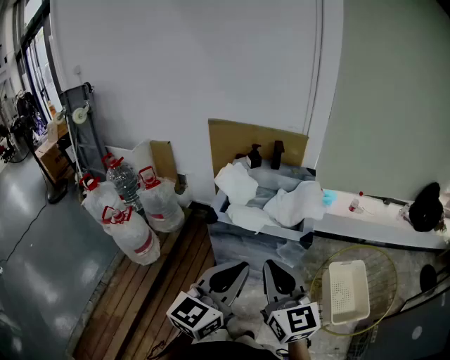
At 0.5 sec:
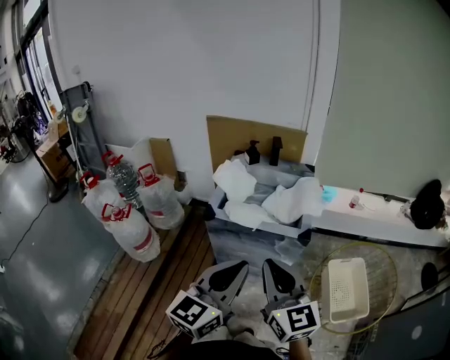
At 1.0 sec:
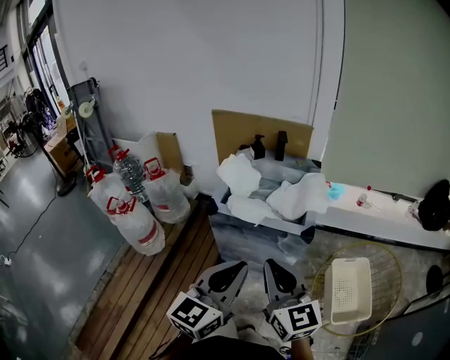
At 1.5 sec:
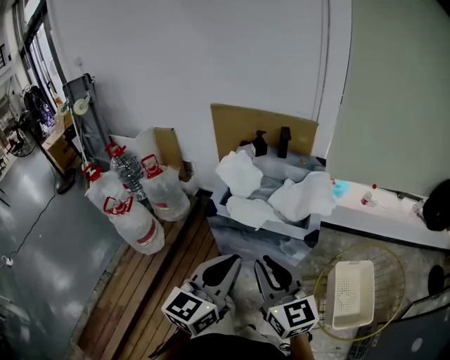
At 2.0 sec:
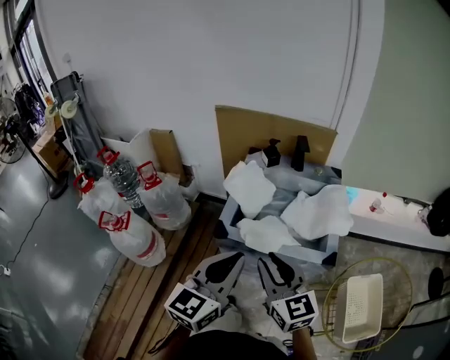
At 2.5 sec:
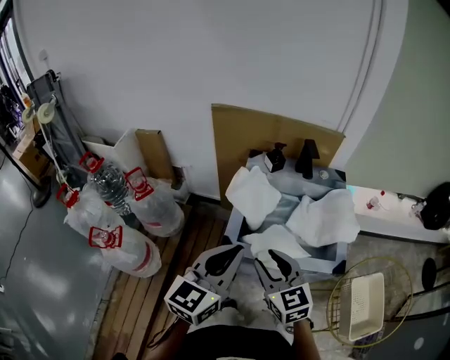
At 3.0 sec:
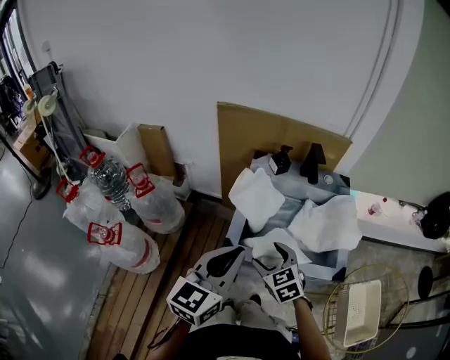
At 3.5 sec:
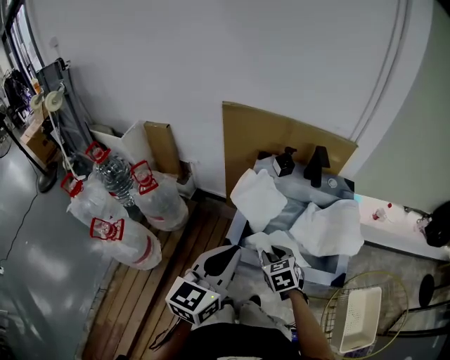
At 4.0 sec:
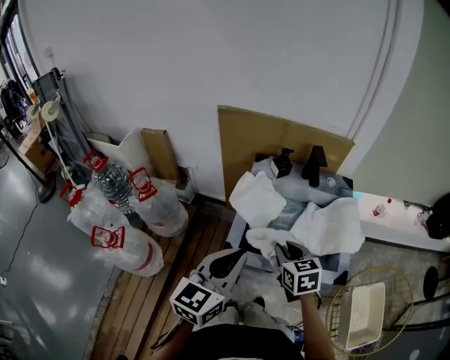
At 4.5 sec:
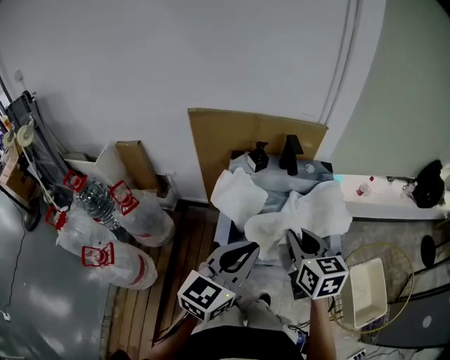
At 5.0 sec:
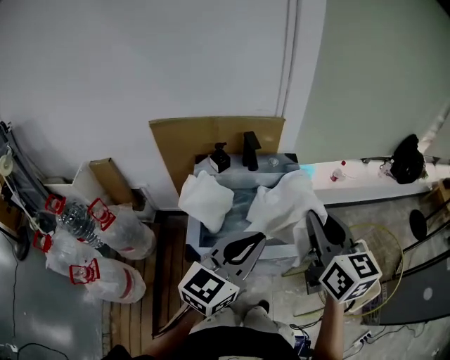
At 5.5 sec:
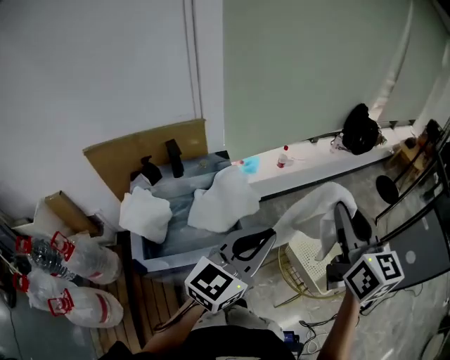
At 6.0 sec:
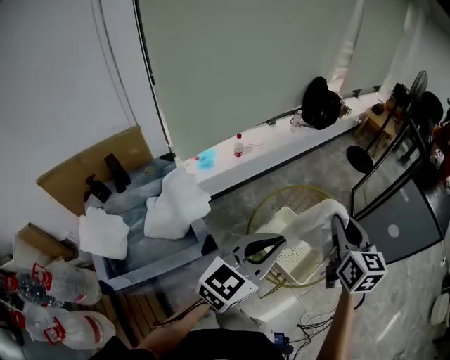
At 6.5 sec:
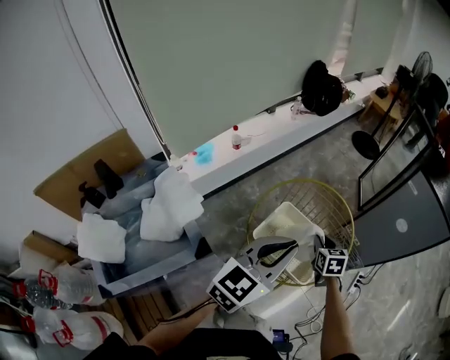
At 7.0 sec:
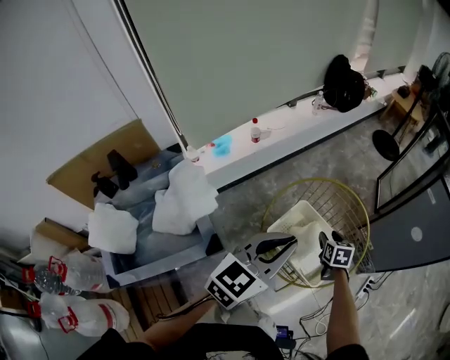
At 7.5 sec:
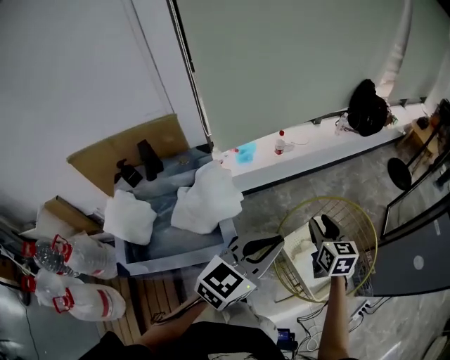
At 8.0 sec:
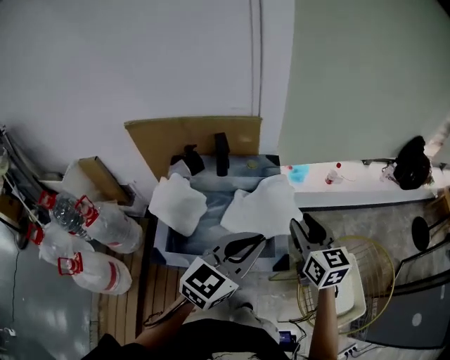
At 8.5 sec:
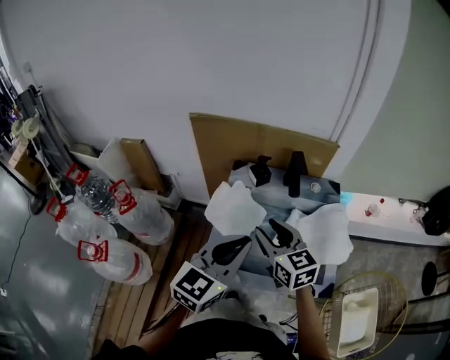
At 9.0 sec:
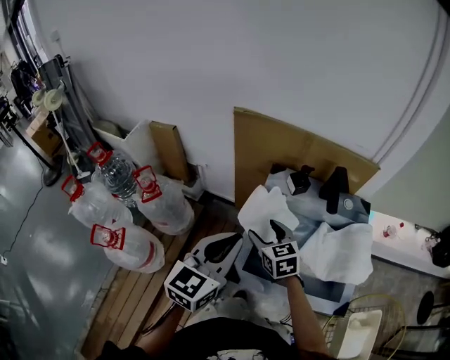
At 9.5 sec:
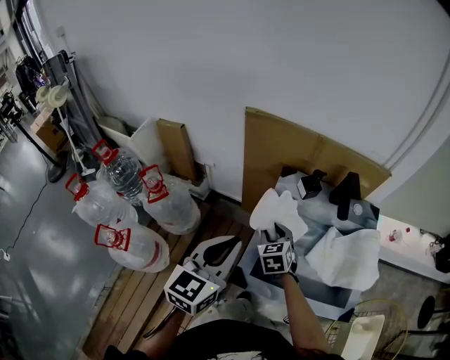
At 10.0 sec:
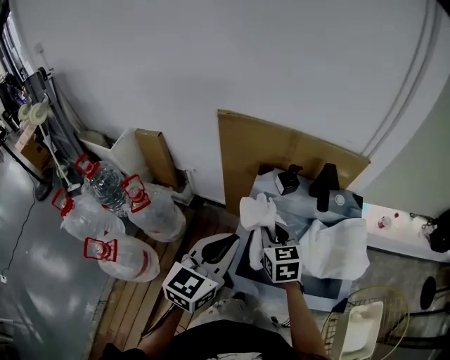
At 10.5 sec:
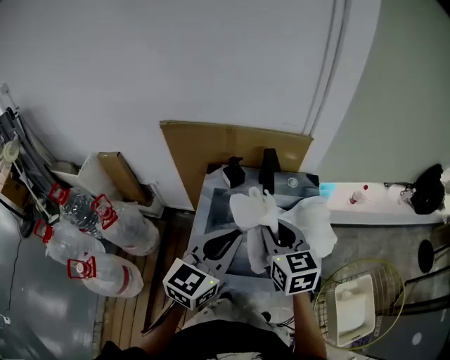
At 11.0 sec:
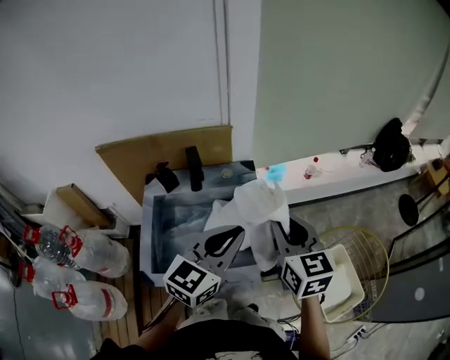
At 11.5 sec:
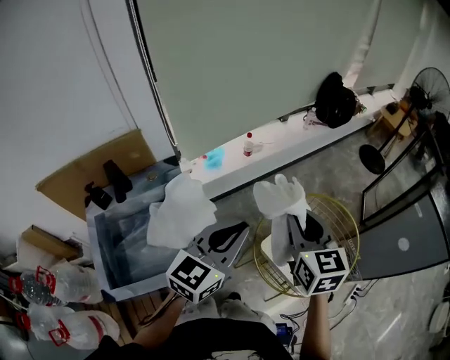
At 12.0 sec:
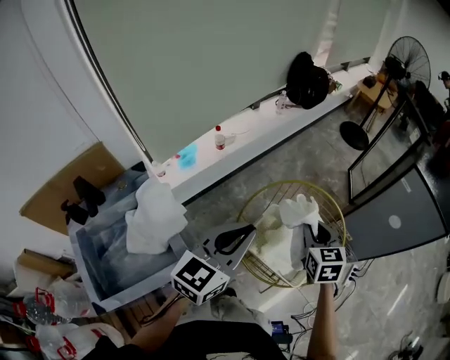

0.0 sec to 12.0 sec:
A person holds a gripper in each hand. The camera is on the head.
0.0 sec to 2.0 sec: The left gripper goes approximately 15 cm forward, while the right gripper goes some 20 cm forward and downward.
2.0 sec to 4.0 sec: The right gripper heads forward and downward, covering about 20 cm, swivels some 30 degrees, and opens, then closes again, while the left gripper heads forward and to the left, covering about 15 cm.
4.0 sec to 6.0 sec: The pair of grippers is taken approximately 60 cm. The right gripper swivels approximately 70 degrees; the left gripper turns by about 60 degrees.
6.0 sec to 8.0 sec: The right gripper goes downward and returns, some 35 cm each way, and changes its angle by some 40 degrees. The left gripper moves some 30 cm, and rotates some 40 degrees.
8.0 sec to 10.0 sec: The left gripper changes place by some 35 cm, and rotates about 30 degrees. Meanwhile the right gripper changes place by about 40 cm, turns by about 30 degrees, and opens, then closes again.
10.0 sec to 12.0 sec: The pair of grippers is taken roughly 70 cm. The left gripper swivels about 60 degrees; the right gripper turns by approximately 60 degrees.

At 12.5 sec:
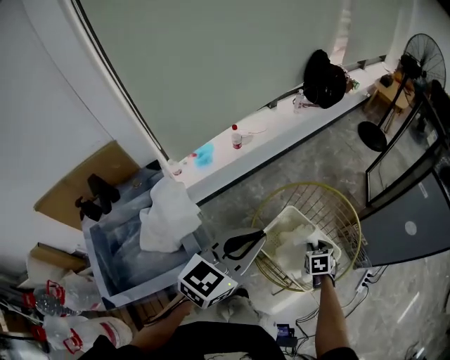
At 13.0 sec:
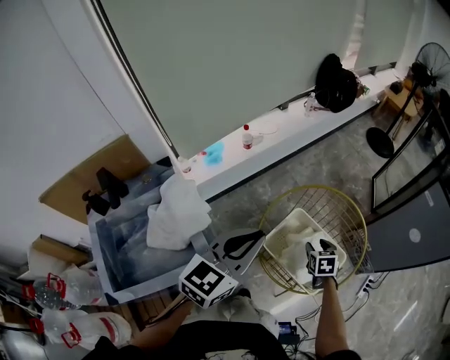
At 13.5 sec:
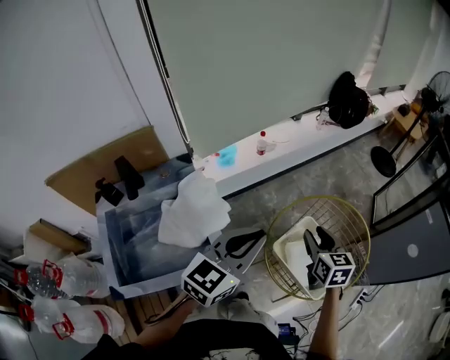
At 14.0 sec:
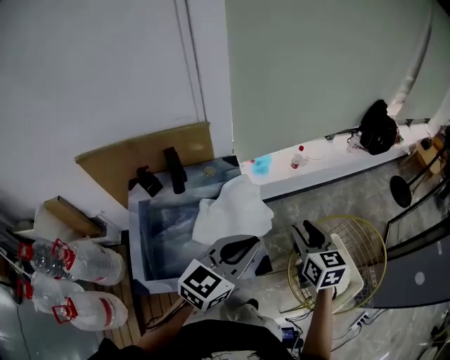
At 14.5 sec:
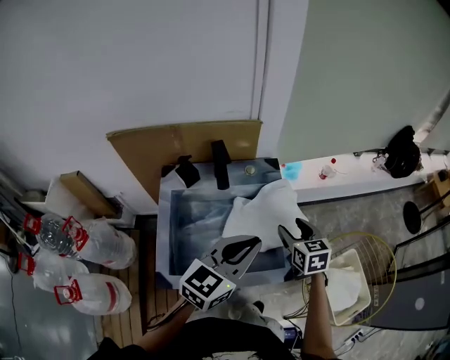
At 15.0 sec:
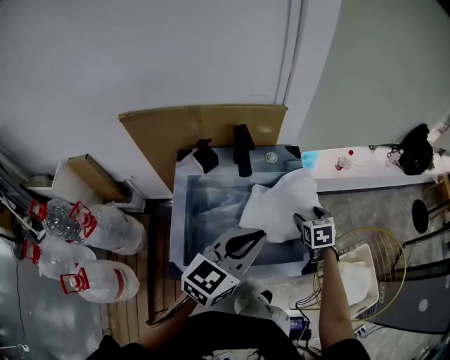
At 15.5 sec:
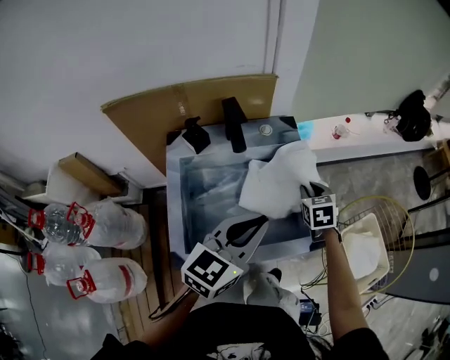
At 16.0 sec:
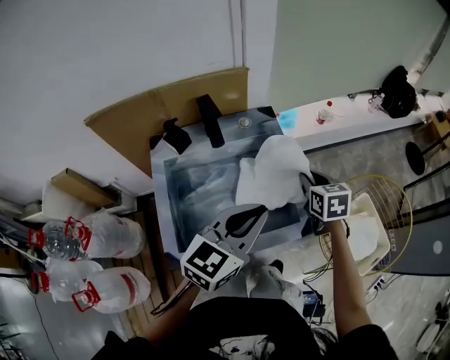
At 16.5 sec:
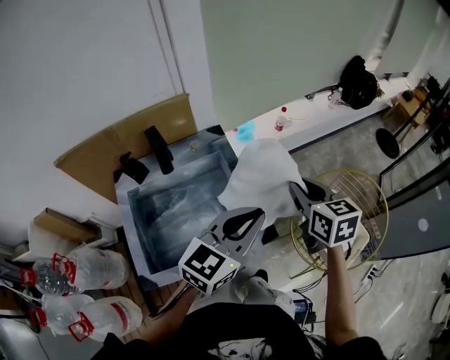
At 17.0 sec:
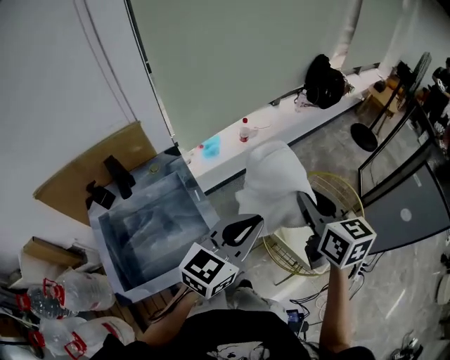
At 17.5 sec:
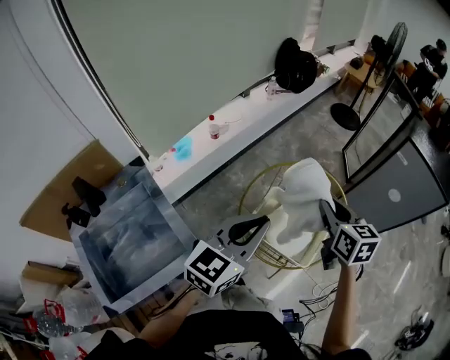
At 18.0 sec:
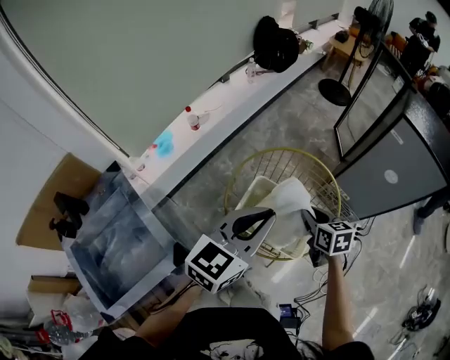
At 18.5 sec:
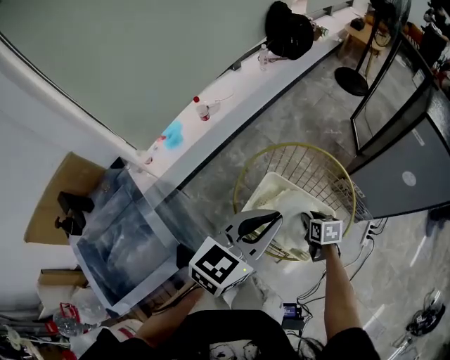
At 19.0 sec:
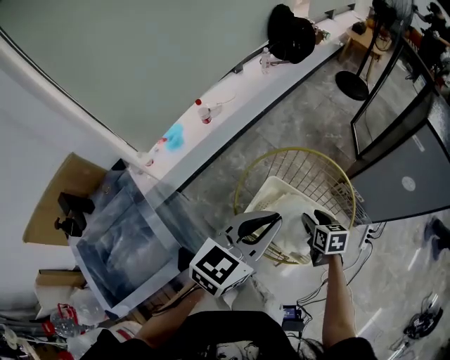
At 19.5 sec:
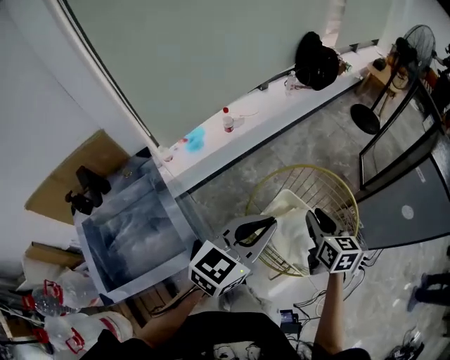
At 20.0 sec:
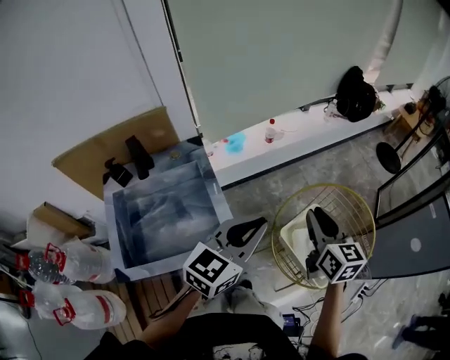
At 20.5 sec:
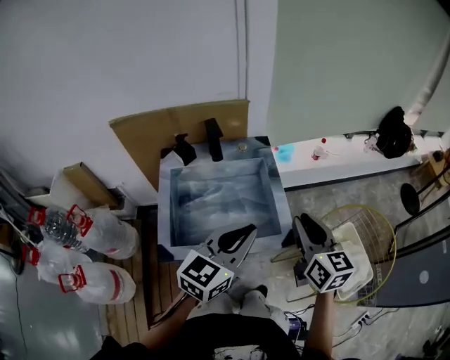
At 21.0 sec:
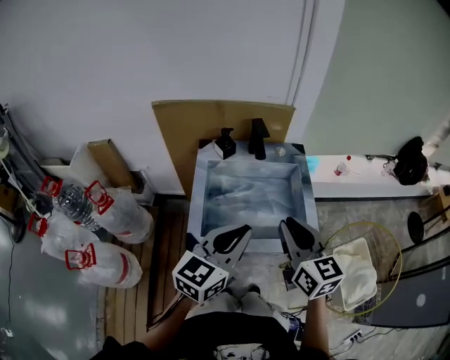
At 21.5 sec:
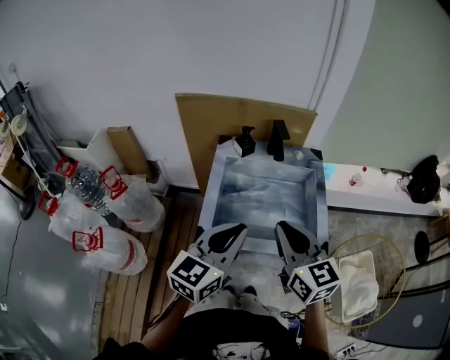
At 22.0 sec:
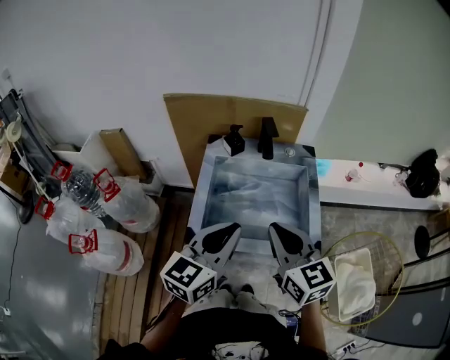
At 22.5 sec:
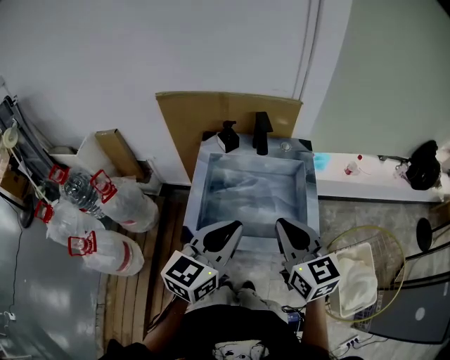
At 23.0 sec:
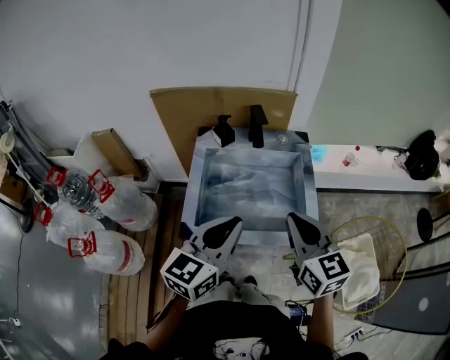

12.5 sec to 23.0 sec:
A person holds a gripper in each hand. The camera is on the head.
12.5 sec to 14.5 sec: The right gripper changes place by approximately 50 cm, turns by roughly 50 degrees, and opens its fingers, while the left gripper moves roughly 35 cm, and swivels about 30 degrees.
14.5 sec to 16.5 sec: The right gripper travels to the right and upward by about 15 cm, and closes its fingers. The left gripper goes approximately 10 cm to the right.
16.5 sec to 19.0 sec: The left gripper moves to the right and forward, about 35 cm, and changes its angle by approximately 30 degrees; the right gripper shifts some 50 cm to the right and downward, swivels some 40 degrees, and opens its fingers.
19.0 sec to 21.0 sec: Both grippers are carried about 60 cm. The left gripper rotates approximately 50 degrees, while the right gripper points its fingers approximately 40 degrees further upward, and closes.
21.0 sec to 23.0 sec: The grippers make only small movements.

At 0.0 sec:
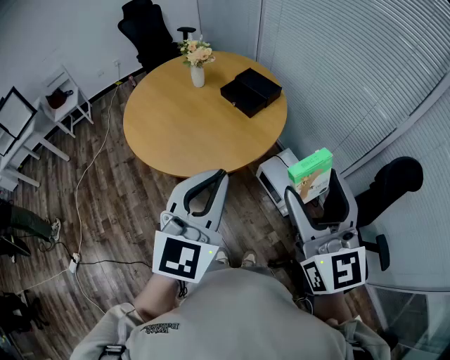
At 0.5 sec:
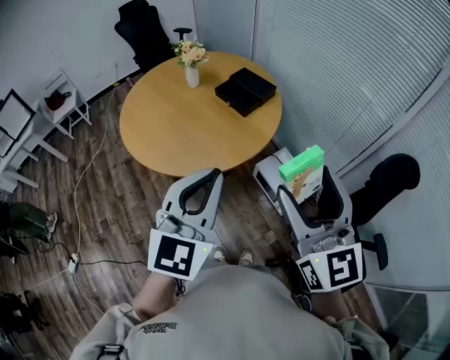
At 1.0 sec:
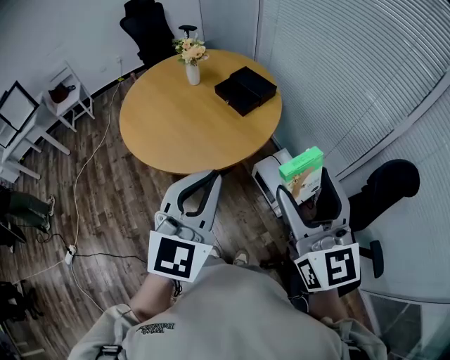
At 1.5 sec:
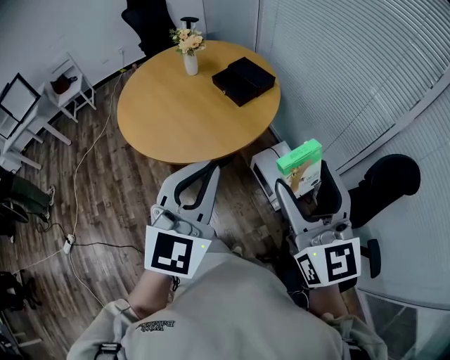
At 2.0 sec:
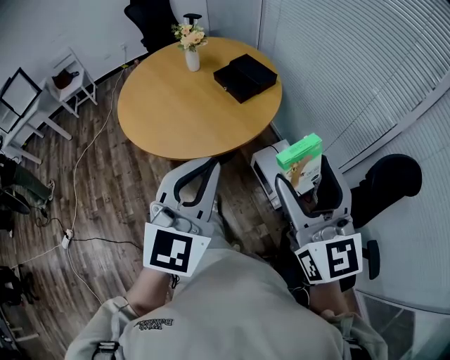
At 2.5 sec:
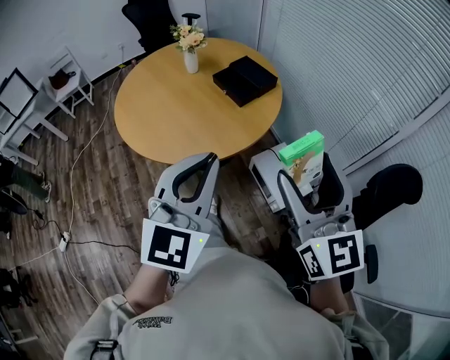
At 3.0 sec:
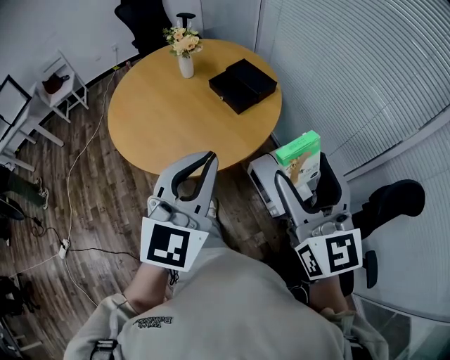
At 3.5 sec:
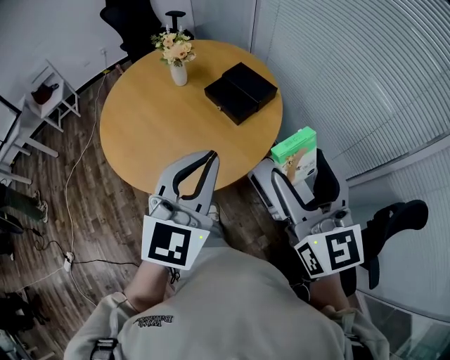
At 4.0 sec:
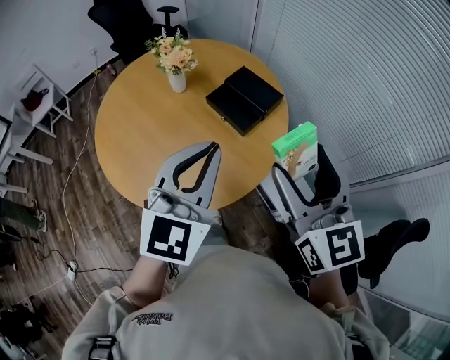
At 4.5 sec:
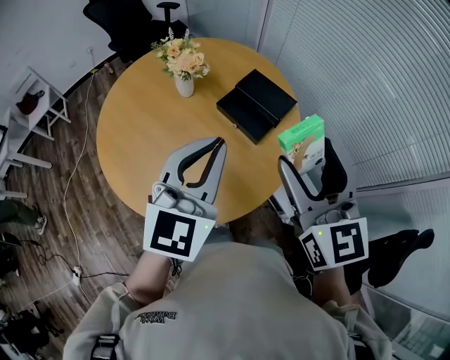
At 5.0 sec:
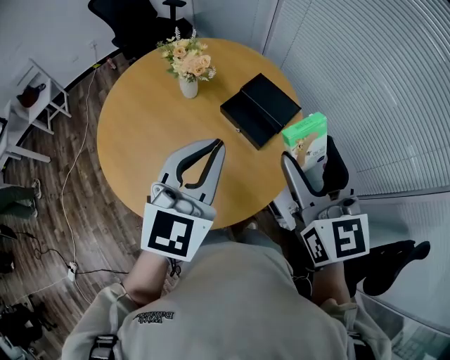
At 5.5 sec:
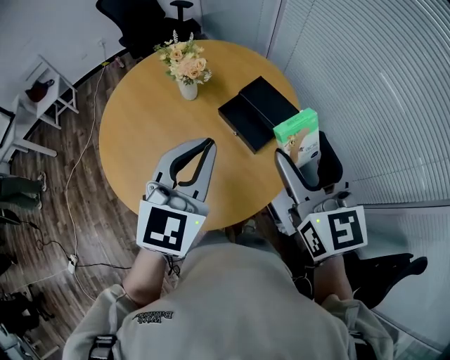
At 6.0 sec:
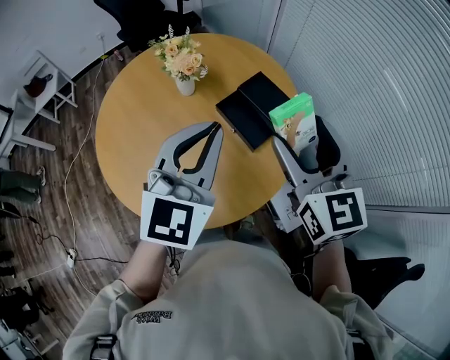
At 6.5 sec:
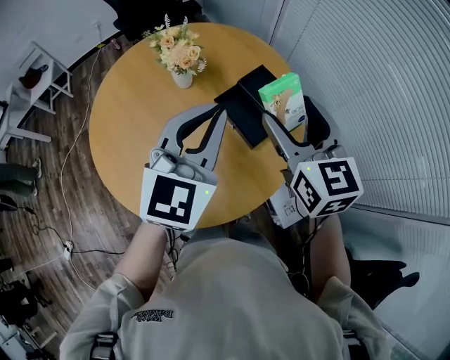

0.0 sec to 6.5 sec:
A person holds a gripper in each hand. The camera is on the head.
0.0 sec to 2.0 sec: The grippers both shift to the right by about 5 cm.
2.0 sec to 4.5 sec: The left gripper travels forward by roughly 35 cm. Meanwhile the right gripper shifts about 35 cm forward and to the left.
4.5 sec to 6.5 sec: The right gripper moves forward and downward, some 15 cm, while the left gripper heads forward, covering some 10 cm.
